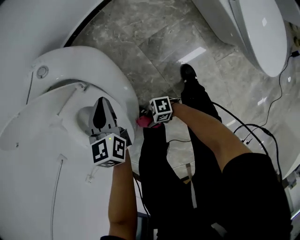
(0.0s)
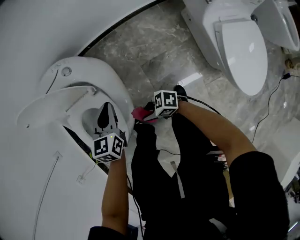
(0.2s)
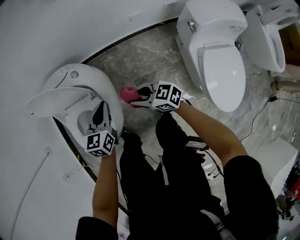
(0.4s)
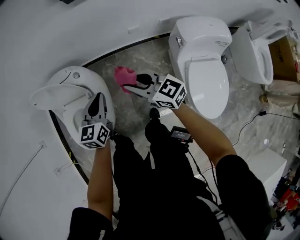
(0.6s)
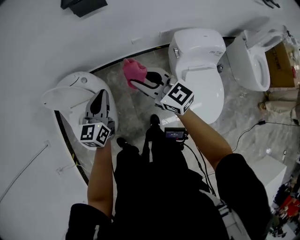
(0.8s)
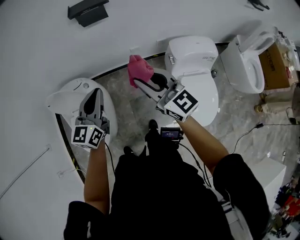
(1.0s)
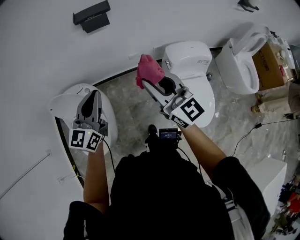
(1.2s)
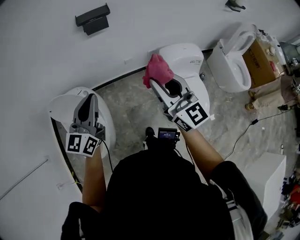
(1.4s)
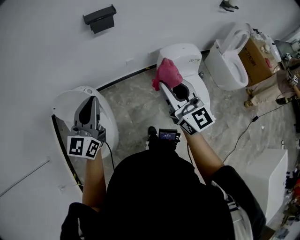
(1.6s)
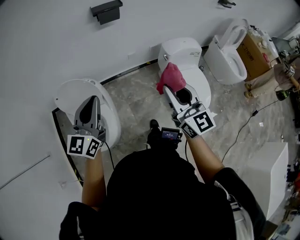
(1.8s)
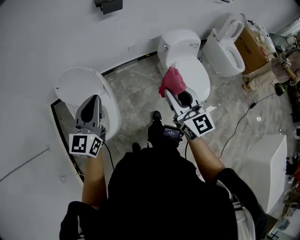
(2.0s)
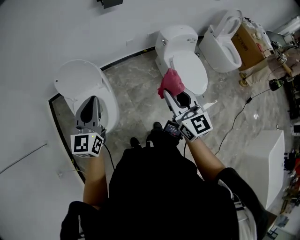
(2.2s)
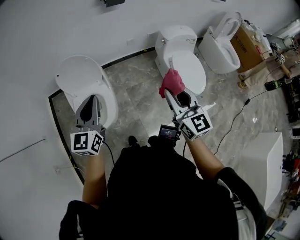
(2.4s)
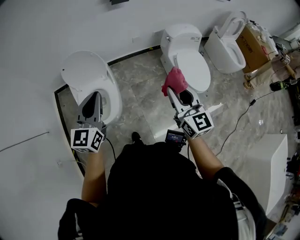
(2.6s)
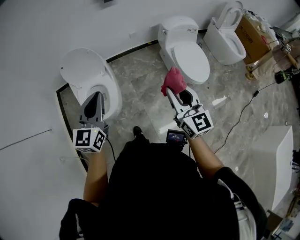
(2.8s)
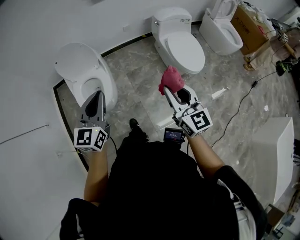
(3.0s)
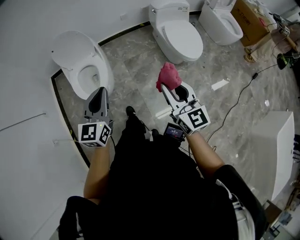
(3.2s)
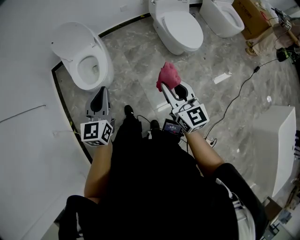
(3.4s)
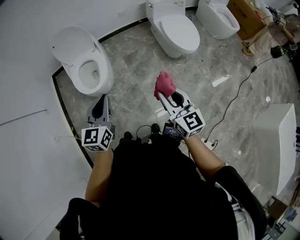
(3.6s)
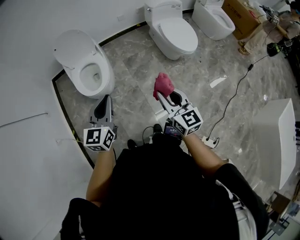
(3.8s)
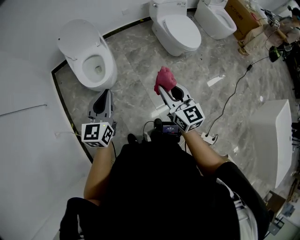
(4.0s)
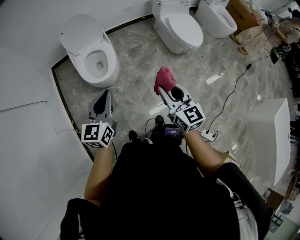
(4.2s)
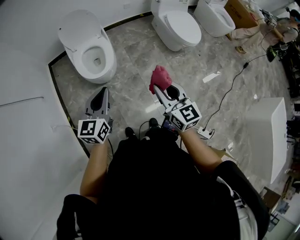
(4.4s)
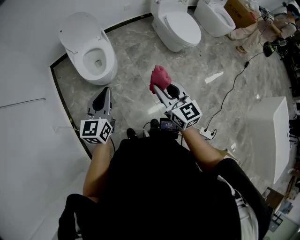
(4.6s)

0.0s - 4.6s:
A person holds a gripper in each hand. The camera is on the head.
0.0s - 1.6s: The two grippers go approximately 60 cm upward. The left gripper points its fingers roughly 50 degrees further upward; the right gripper swivels about 110 degrees.
1.6s - 3.0s: Both grippers move backward, approximately 35 cm.
3.0s - 4.6s: Both grippers travel together backward and to the left, approximately 25 cm.

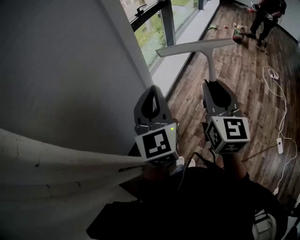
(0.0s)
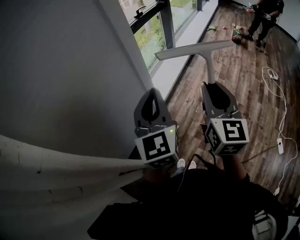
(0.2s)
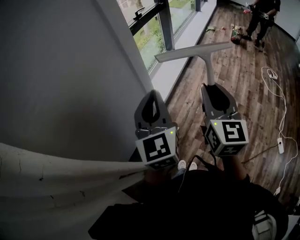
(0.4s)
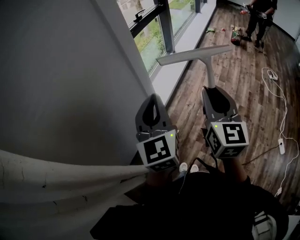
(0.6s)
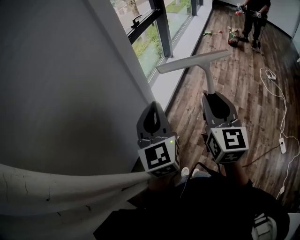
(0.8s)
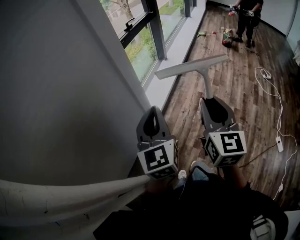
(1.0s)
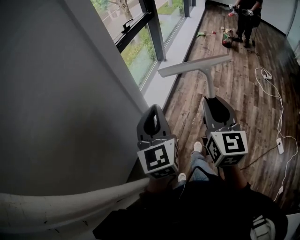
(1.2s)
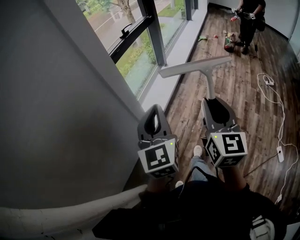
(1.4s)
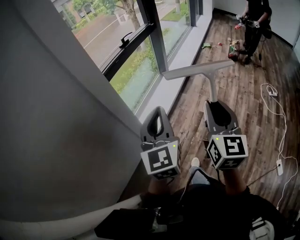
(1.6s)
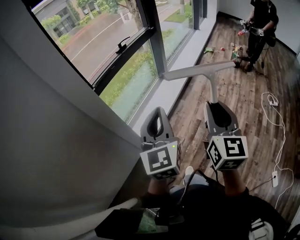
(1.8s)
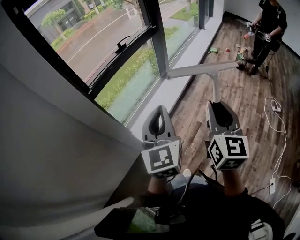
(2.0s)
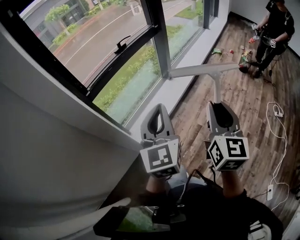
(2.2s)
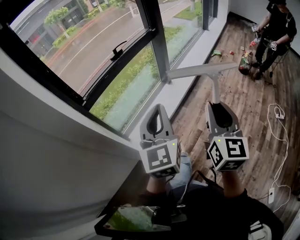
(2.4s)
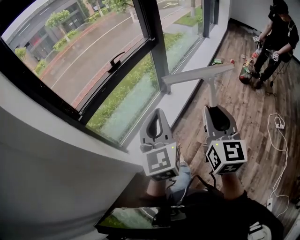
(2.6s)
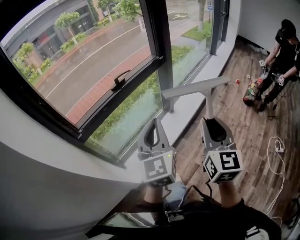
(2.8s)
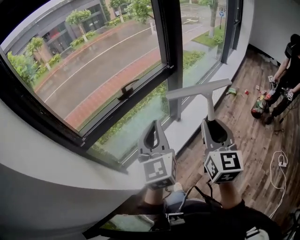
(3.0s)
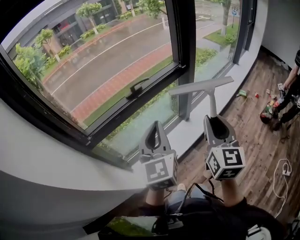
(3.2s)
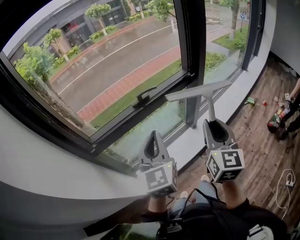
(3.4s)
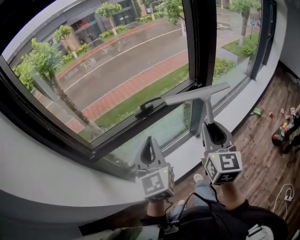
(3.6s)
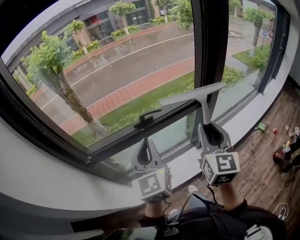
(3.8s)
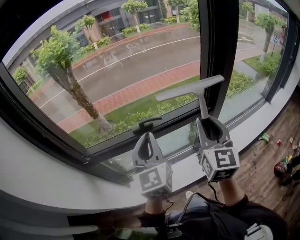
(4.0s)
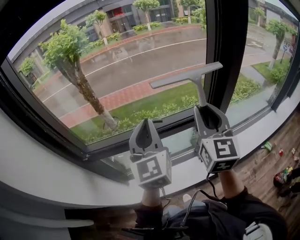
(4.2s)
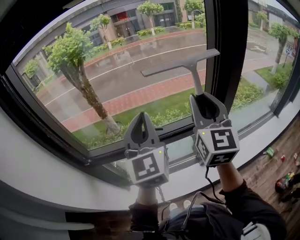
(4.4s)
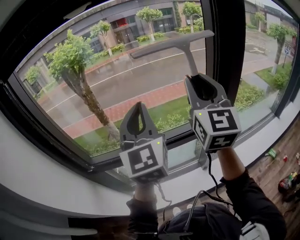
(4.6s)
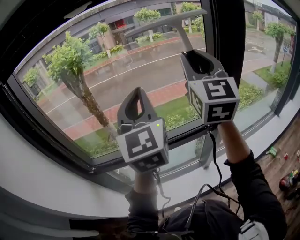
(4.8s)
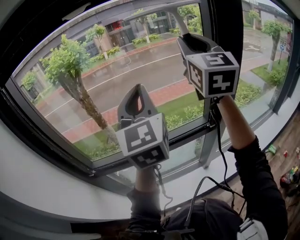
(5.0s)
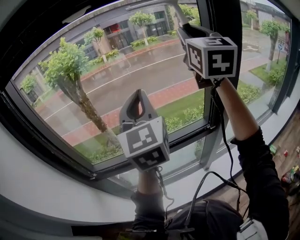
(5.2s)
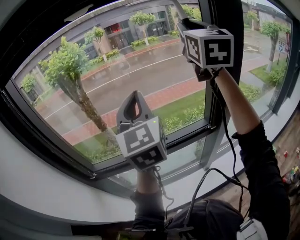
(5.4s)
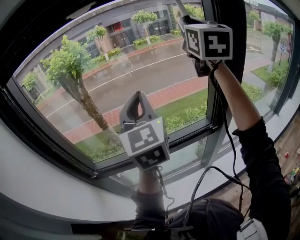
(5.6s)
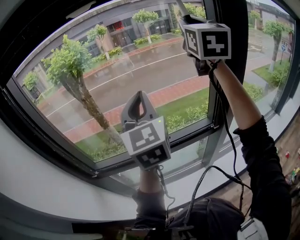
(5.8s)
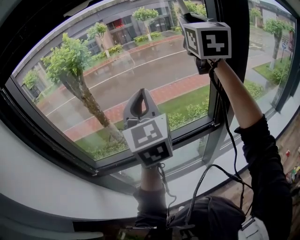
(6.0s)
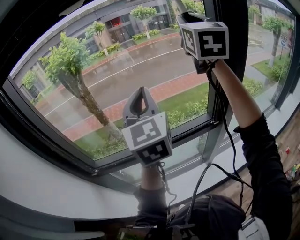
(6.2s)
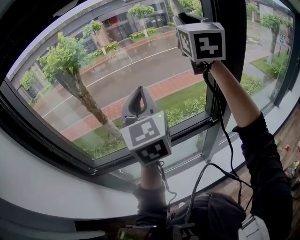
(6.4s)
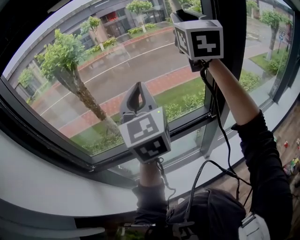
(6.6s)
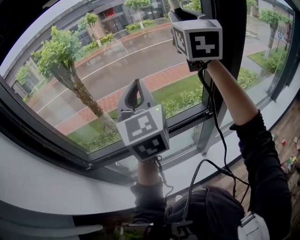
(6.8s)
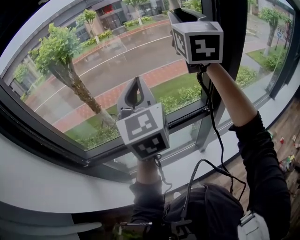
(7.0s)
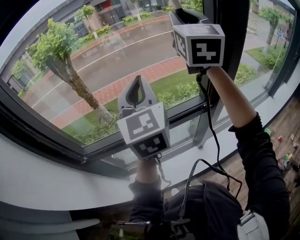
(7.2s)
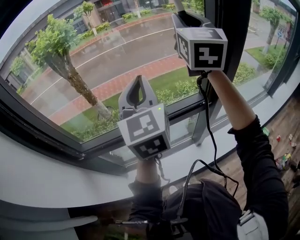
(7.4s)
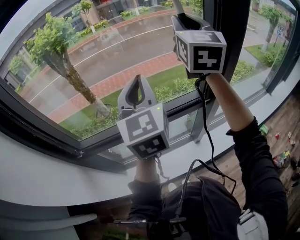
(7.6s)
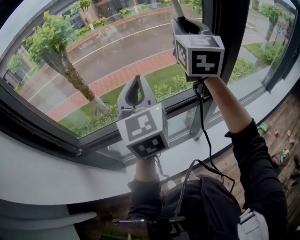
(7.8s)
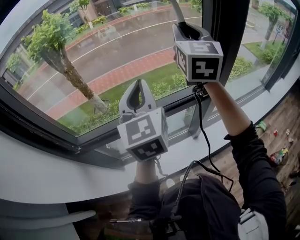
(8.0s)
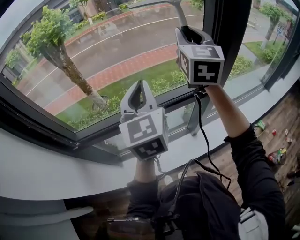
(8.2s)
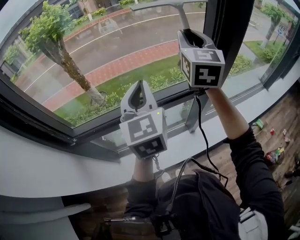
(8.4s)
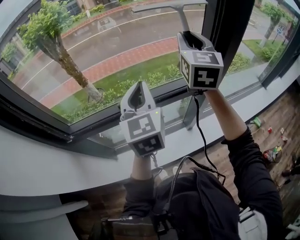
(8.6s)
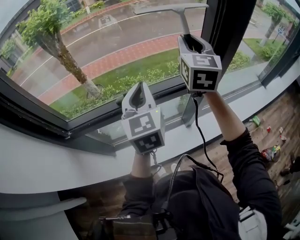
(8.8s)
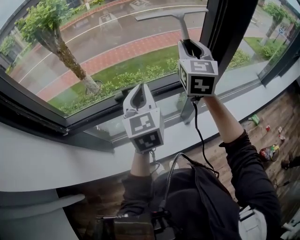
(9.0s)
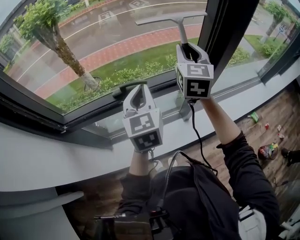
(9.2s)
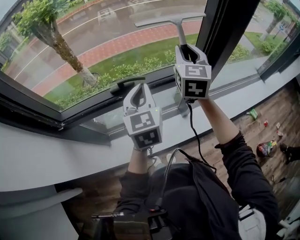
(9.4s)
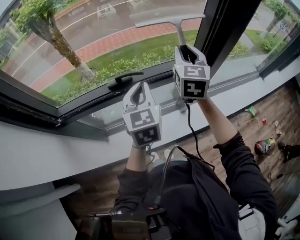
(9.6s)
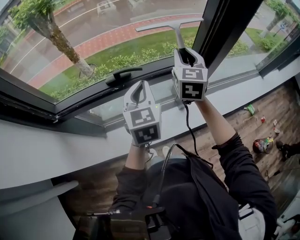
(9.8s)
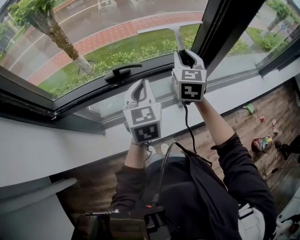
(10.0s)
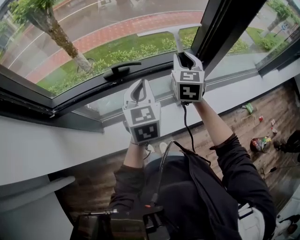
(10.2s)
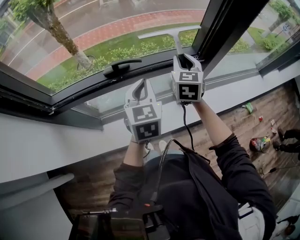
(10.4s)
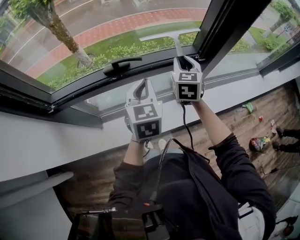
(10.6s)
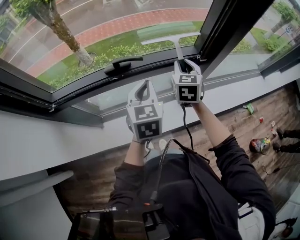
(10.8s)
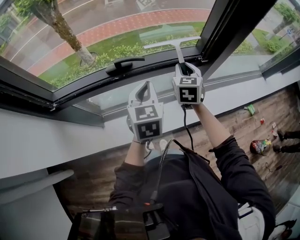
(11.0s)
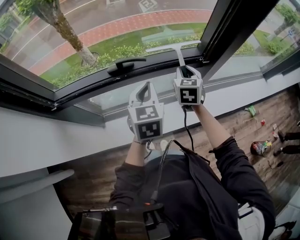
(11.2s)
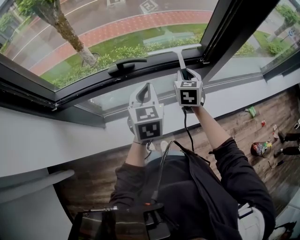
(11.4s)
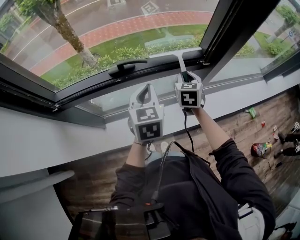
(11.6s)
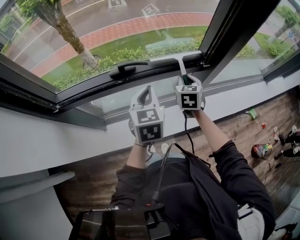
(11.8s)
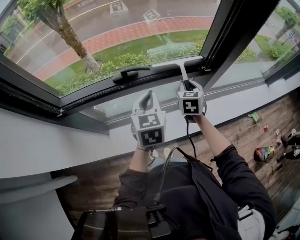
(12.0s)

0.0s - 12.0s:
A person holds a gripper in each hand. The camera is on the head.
0.0s - 1.6s: Both grippers travel together forward and to the right, roughly 25 cm.
1.6s - 3.0s: The two grippers travel together, forward, about 50 cm.
3.0s - 4.4s: The left gripper shifts by roughly 35 cm, and rotates roughly 40 degrees. The right gripper changes place by about 50 cm, and turns by some 40 degrees.
4.4s - 6.0s: The left gripper goes about 5 cm upward, while the right gripper moves upward and forward, some 25 cm.
6.0s - 7.6s: The left gripper travels downward by about 5 cm, while the right gripper is displaced downward by some 10 cm.
7.6s - 9.0s: The two grippers go some 15 cm downward.
9.0s - 10.4s: The left gripper shifts about 10 cm downward. Meanwhile the right gripper goes roughly 20 cm downward.
10.4s - 12.0s: The right gripper goes approximately 10 cm downward.

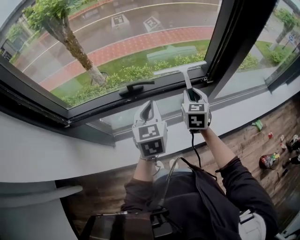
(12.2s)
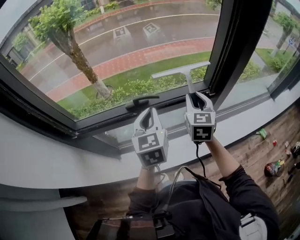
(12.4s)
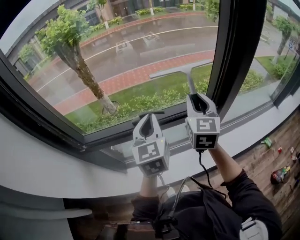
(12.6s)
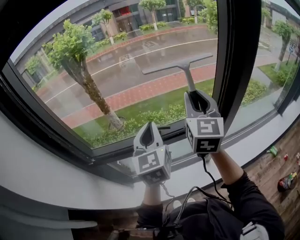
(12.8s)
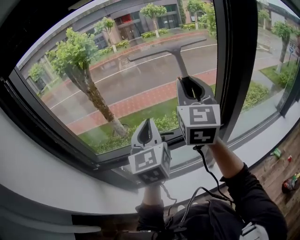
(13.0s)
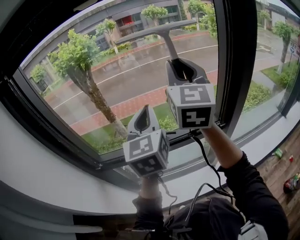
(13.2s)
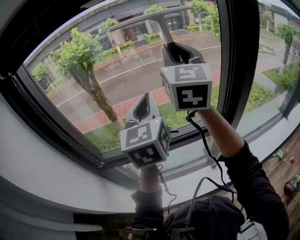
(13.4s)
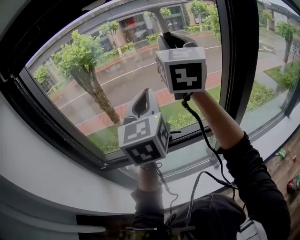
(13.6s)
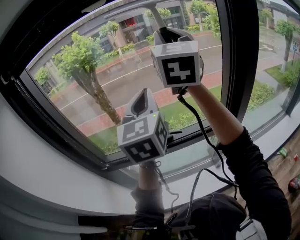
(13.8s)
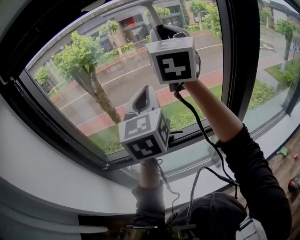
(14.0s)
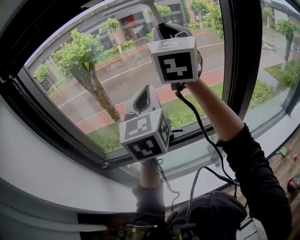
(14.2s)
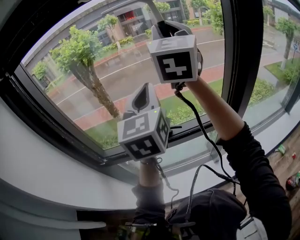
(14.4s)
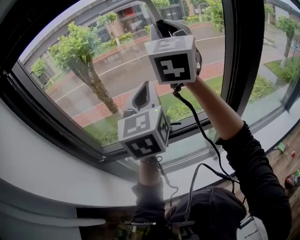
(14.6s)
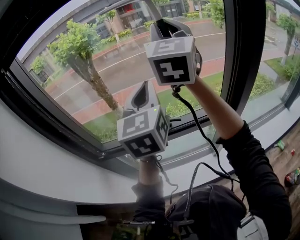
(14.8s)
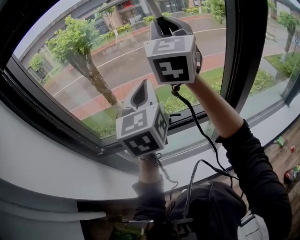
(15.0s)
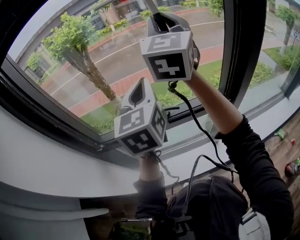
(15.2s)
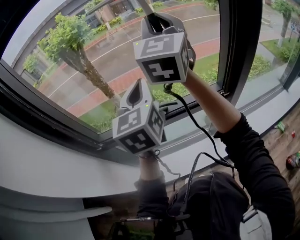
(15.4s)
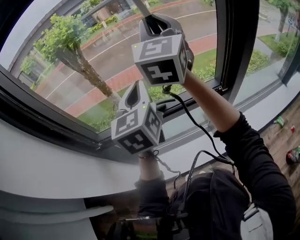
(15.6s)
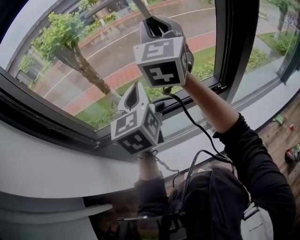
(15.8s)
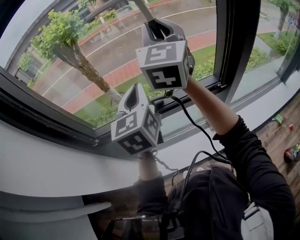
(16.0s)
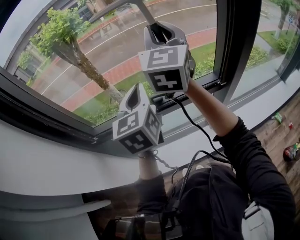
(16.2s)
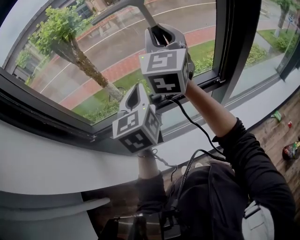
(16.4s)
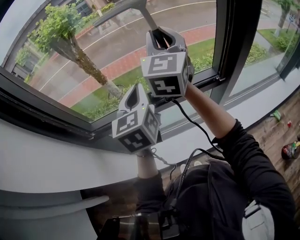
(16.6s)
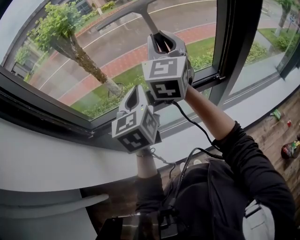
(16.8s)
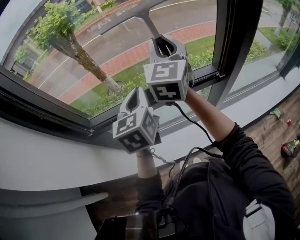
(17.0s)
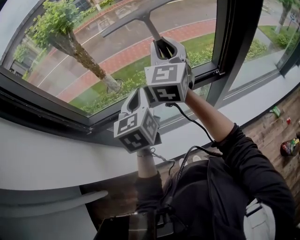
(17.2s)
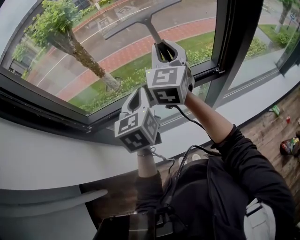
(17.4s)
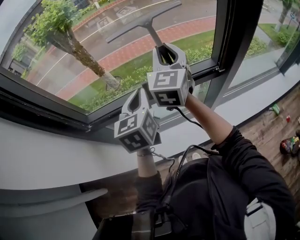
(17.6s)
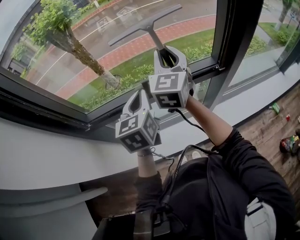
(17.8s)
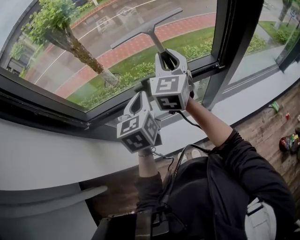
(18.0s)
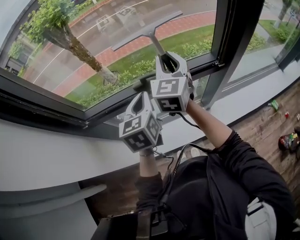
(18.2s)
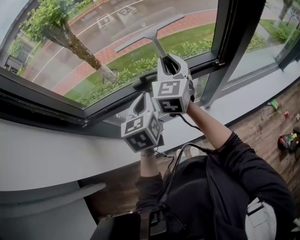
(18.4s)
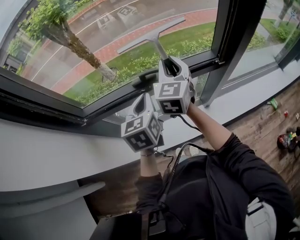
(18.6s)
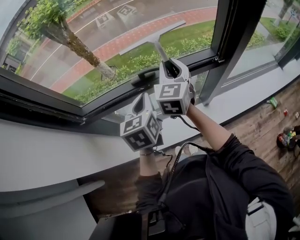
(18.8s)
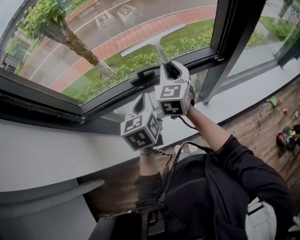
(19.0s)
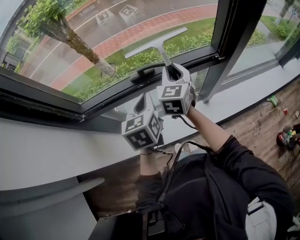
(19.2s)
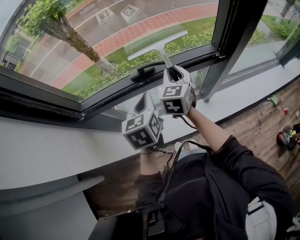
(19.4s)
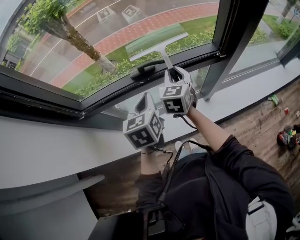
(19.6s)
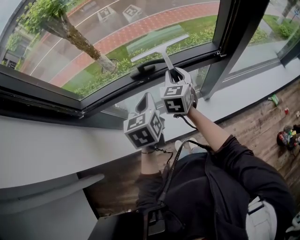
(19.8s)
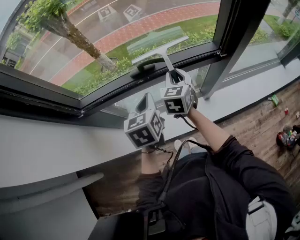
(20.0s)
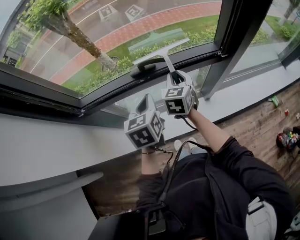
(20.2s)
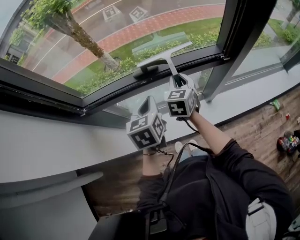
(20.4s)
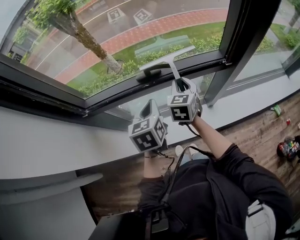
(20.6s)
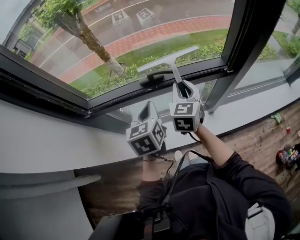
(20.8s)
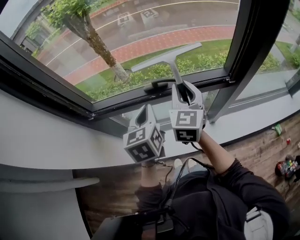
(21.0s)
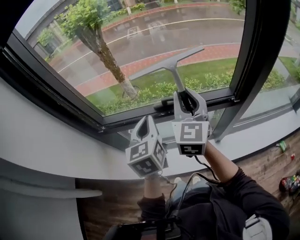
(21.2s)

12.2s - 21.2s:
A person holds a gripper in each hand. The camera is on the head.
12.2s - 13.8s: The left gripper shifts about 30 cm upward, and changes its angle by about 30 degrees, while the right gripper shifts roughly 50 cm upward, and tips its fingers upward by some 50 degrees.
13.8s - 15.2s: The grippers both shift downward by roughly 5 cm.
15.2s - 16.6s: Both grippers travel together downward, about 10 cm.
16.6s - 18.2s: The right gripper heads downward, covering approximately 15 cm; the left gripper goes about 10 cm downward.
18.2s - 19.8s: The left gripper travels downward by about 5 cm. The right gripper goes approximately 15 cm downward.
19.8s - 21.2s: The left gripper moves upward, about 10 cm, while the right gripper is displaced upward by about 20 cm, and changes its angle by about 30 degrees.
